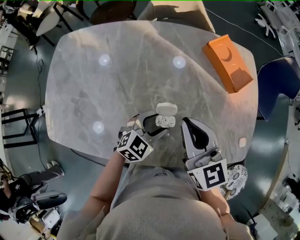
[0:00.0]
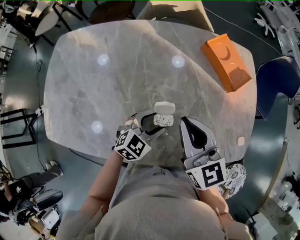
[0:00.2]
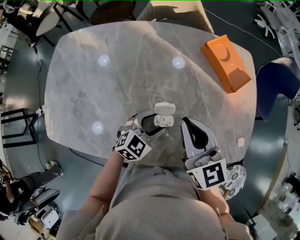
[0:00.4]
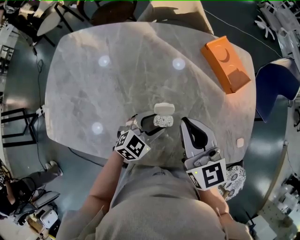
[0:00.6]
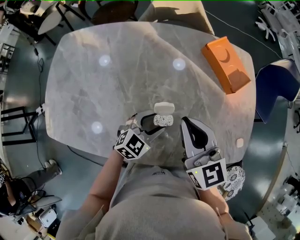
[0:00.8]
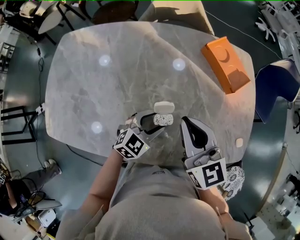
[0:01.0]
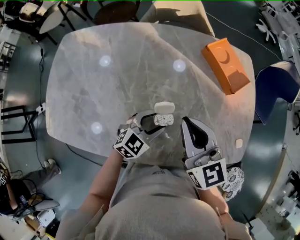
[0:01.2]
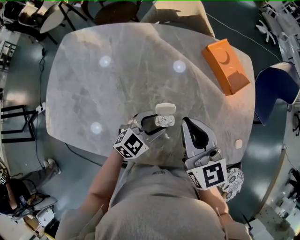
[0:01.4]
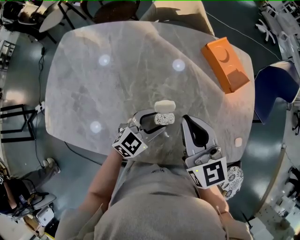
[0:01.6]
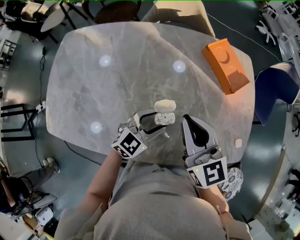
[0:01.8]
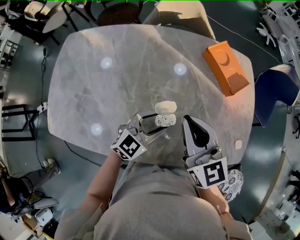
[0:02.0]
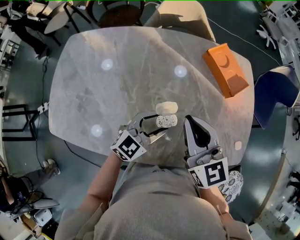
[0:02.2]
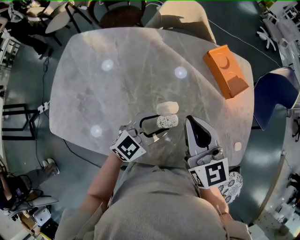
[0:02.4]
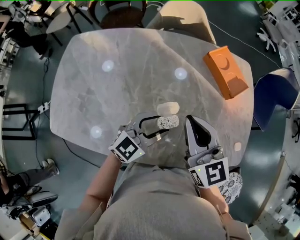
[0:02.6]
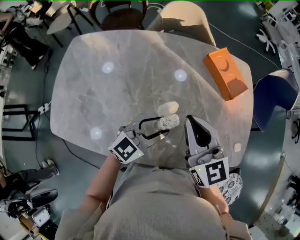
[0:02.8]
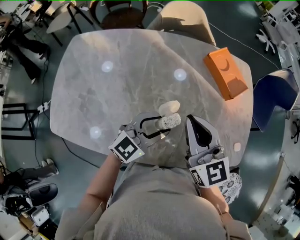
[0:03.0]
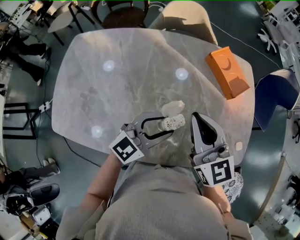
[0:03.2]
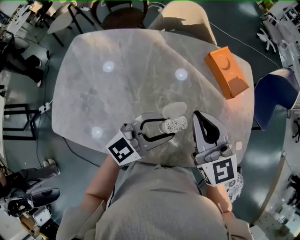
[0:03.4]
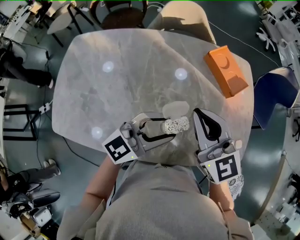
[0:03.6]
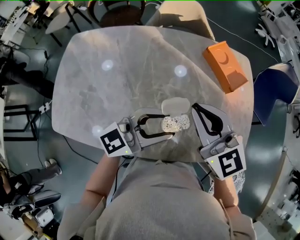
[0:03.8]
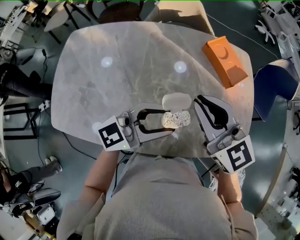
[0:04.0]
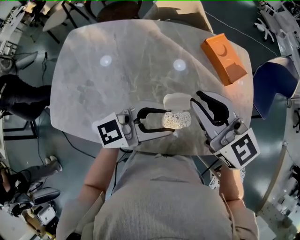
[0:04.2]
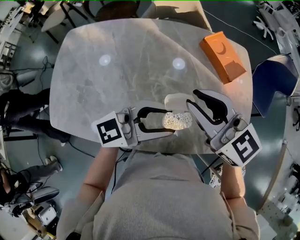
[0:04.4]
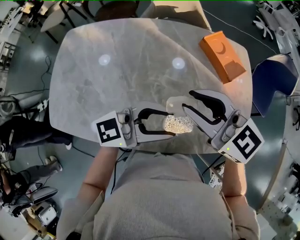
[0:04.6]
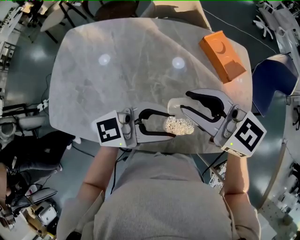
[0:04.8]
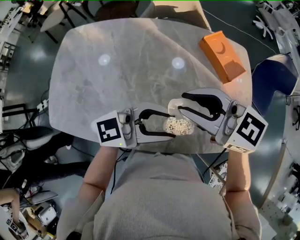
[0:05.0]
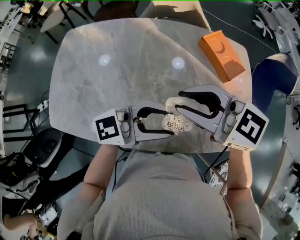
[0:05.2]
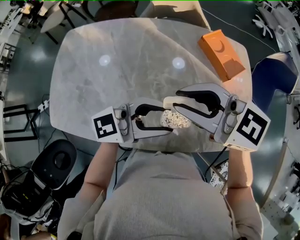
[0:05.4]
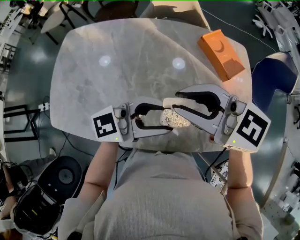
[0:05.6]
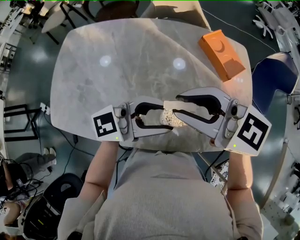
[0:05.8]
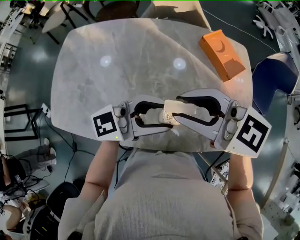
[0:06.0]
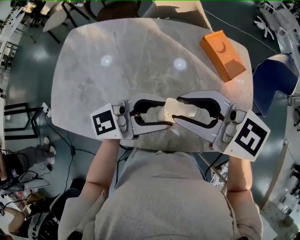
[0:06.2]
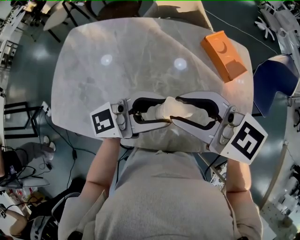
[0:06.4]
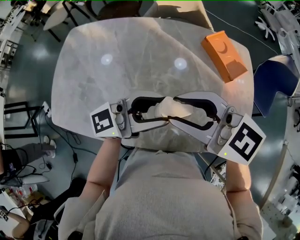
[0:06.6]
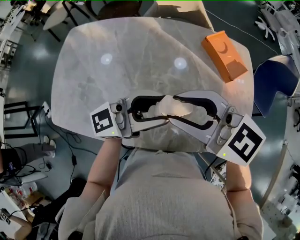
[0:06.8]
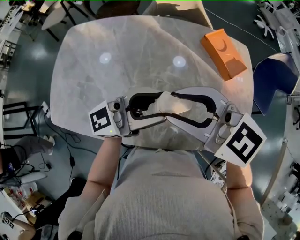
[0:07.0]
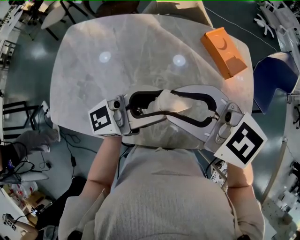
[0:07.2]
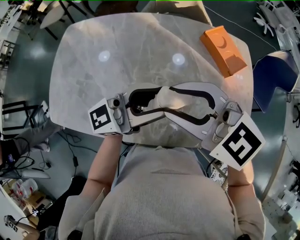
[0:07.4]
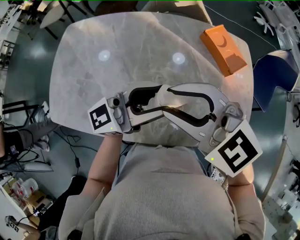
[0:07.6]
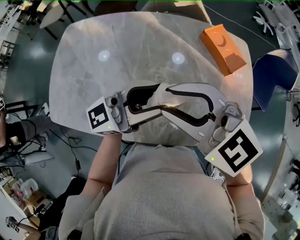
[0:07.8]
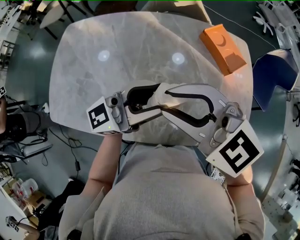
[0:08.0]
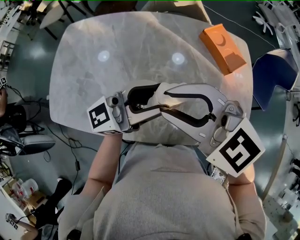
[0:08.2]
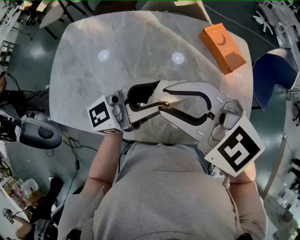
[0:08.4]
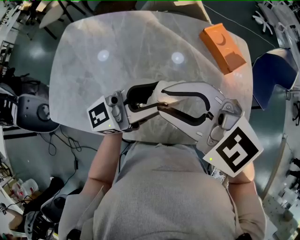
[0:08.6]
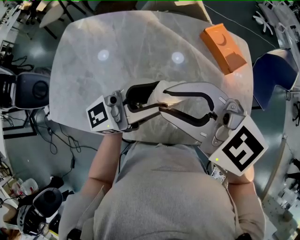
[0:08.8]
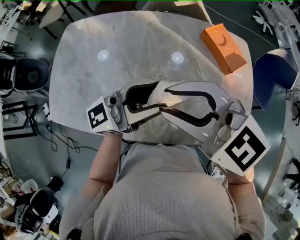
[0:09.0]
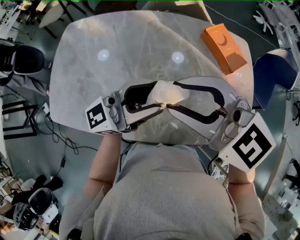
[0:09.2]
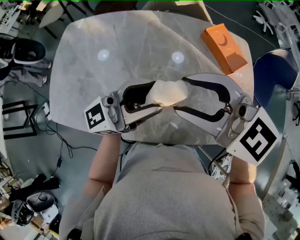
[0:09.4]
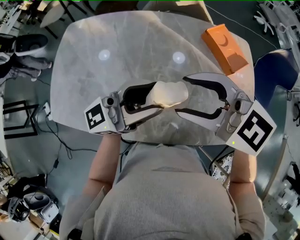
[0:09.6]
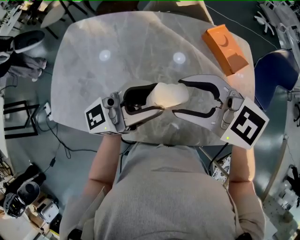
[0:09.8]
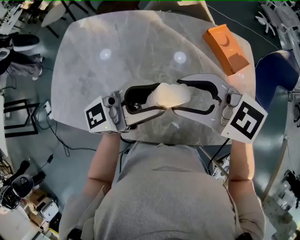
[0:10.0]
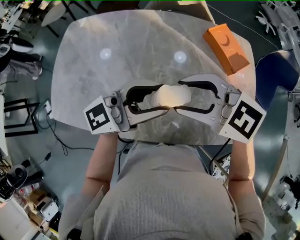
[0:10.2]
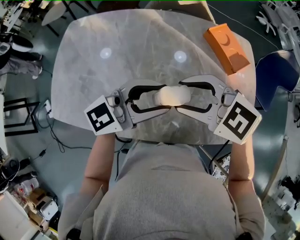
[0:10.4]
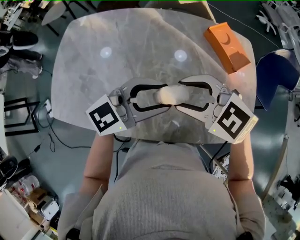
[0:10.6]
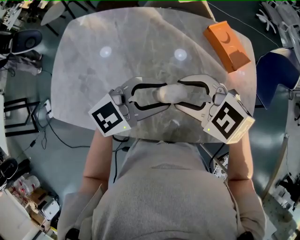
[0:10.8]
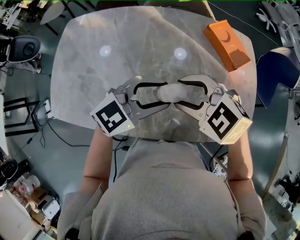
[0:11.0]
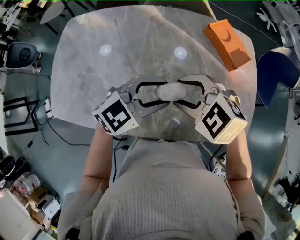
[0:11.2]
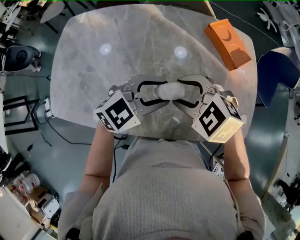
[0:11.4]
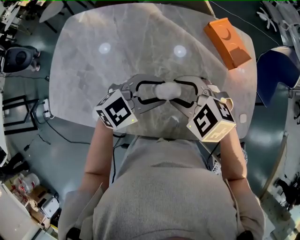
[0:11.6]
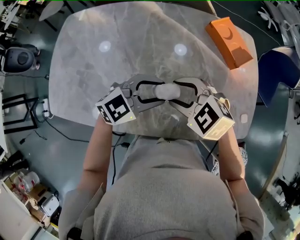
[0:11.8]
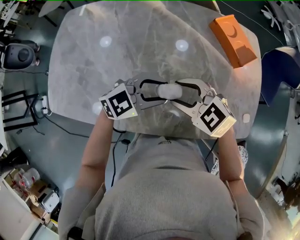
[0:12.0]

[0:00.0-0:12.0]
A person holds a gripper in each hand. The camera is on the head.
0:00.0 to 0:01.6: The grippers make only small movements.
0:01.6 to 0:03.0: The left gripper heads upward, covering approximately 10 cm.
0:03.0 to 0:04.4: The right gripper rotates about 20 degrees, and opens up. Meanwhile the left gripper travels upward by some 10 cm, and turns by about 30 degrees.
0:04.4 to 0:06.0: The right gripper shifts by about 5 cm, and changes its angle by approximately 20 degrees.
0:06.0 to 0:07.6: The right gripper rotates about 20 degrees, while the left gripper ends up roughly 5 cm from where it was.
0:07.6 to 0:09.0: The grippers stay close to where they were, moving slightly.
0:09.0 to 0:10.4: The left gripper rotates roughly 20 degrees. The right gripper travels downward by approximately 10 cm, and opens its fingers.
0:10.4 to 0:12.0: Both grippers travel together downward, roughly 15 cm. The left gripper rotates some 30 degrees.

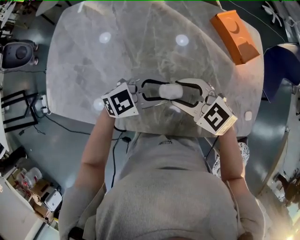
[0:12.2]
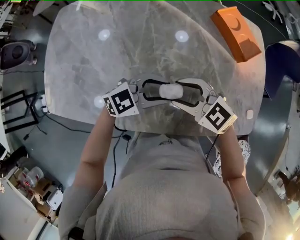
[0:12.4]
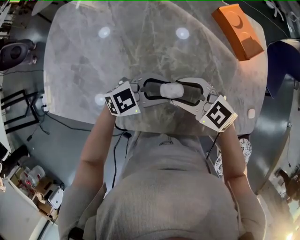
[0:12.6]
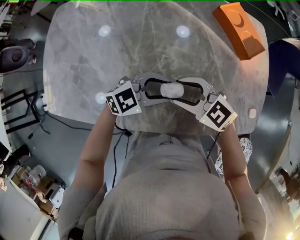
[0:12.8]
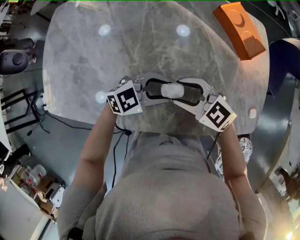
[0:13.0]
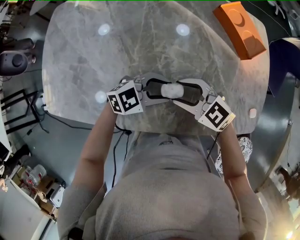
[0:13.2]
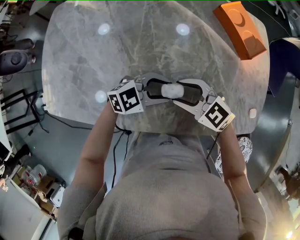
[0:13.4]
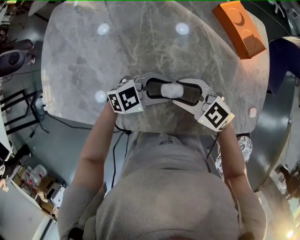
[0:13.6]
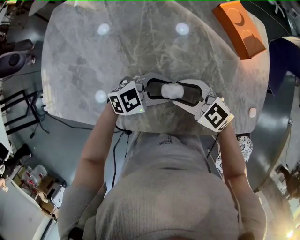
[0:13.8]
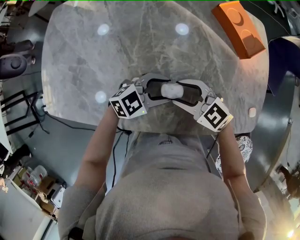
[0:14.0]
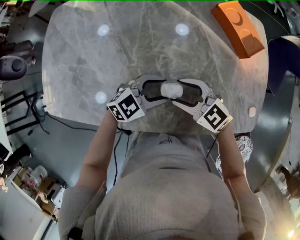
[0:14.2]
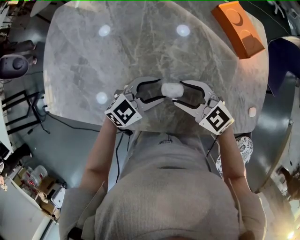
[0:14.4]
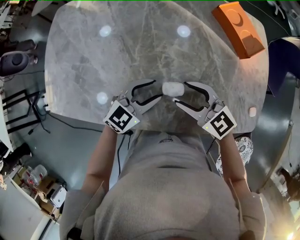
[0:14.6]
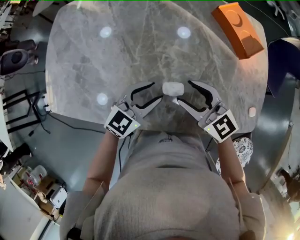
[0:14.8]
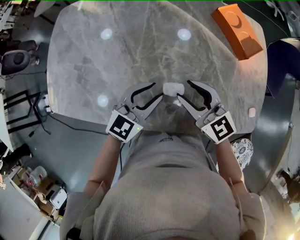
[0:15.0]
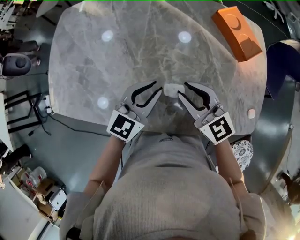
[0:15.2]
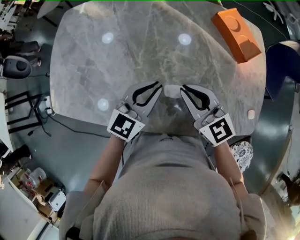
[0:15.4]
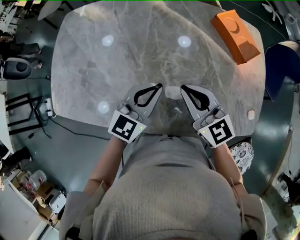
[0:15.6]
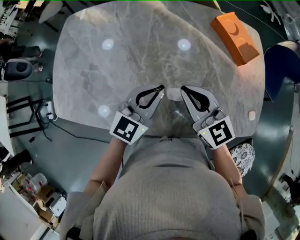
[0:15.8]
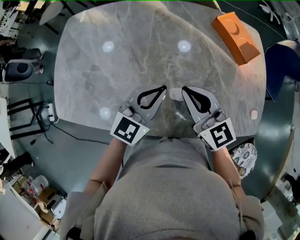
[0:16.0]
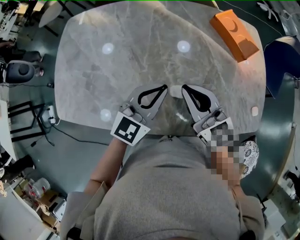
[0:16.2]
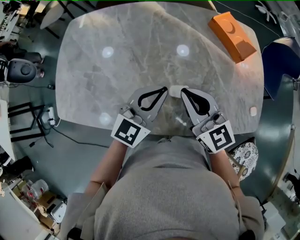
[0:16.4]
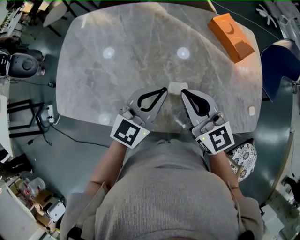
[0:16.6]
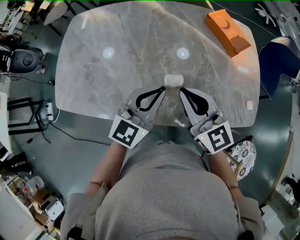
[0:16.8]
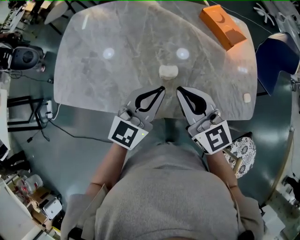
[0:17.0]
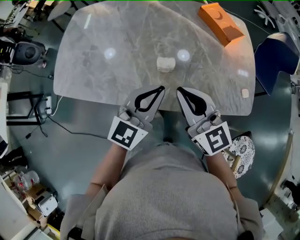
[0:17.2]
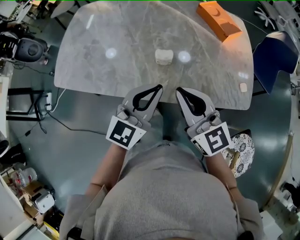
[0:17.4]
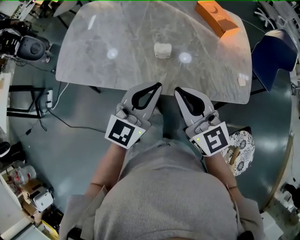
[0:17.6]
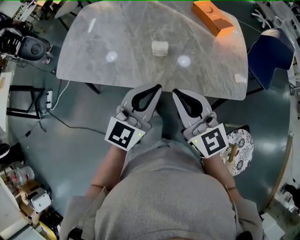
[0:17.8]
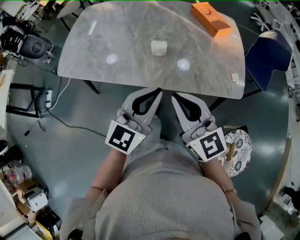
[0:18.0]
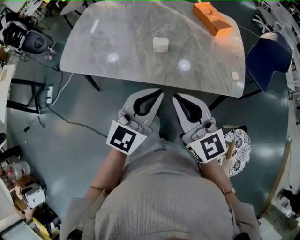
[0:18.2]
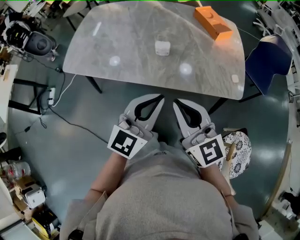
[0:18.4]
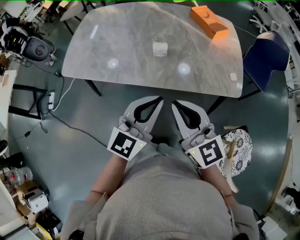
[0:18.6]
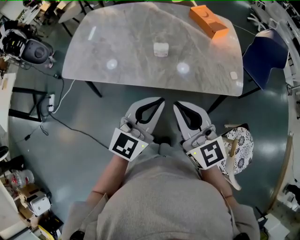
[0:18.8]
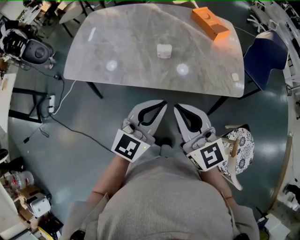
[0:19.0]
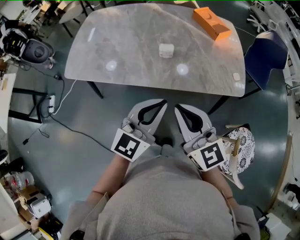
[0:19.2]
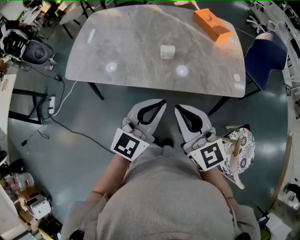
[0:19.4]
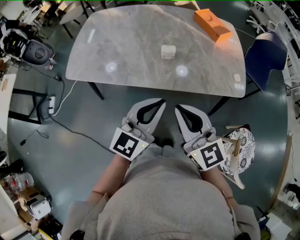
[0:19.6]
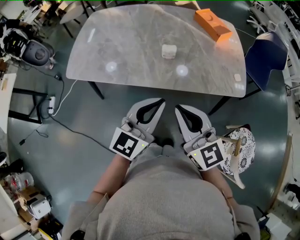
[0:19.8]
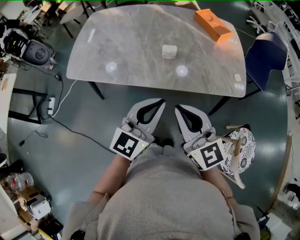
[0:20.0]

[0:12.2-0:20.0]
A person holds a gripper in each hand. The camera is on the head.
0:12.2 to 0:13.8: The two grippers go some 5 cm downward.
0:13.8 to 0:15.4: Both grippers move upward, about 10 cm. The left gripper turns by about 50 degrees, and closes its fingers, while the right gripper changes its angle by about 30 degrees, and closes its fingers.
0:15.4 to 0:16.8: The left gripper goes some 10 cm backward and upward. Meanwhile the right gripper travels upward and backward by about 10 cm.
0:16.8 to 0:18.4: The grippers both shift backward by approximately 25 cm.
0:18.4 to 0:20.0: The grippers make only small movements.

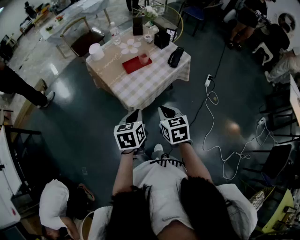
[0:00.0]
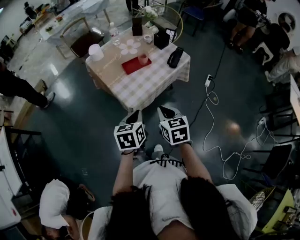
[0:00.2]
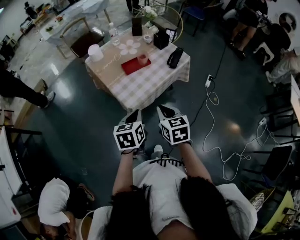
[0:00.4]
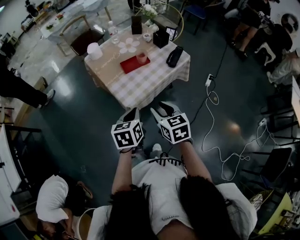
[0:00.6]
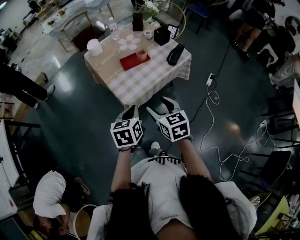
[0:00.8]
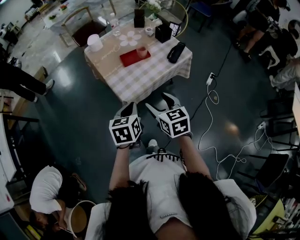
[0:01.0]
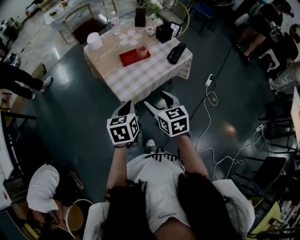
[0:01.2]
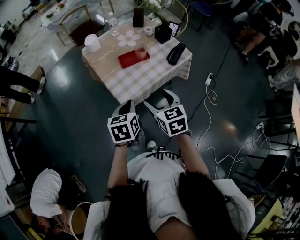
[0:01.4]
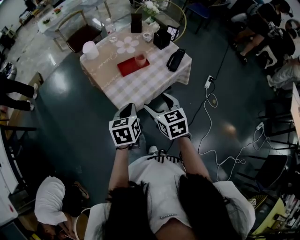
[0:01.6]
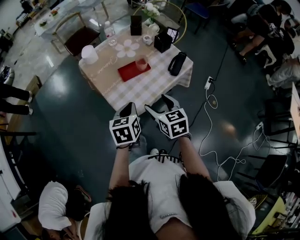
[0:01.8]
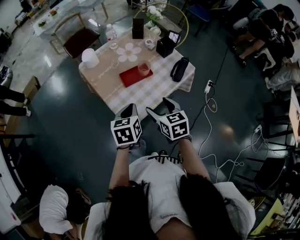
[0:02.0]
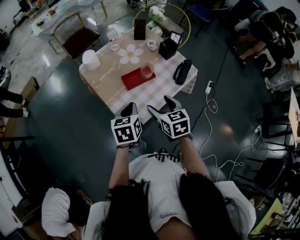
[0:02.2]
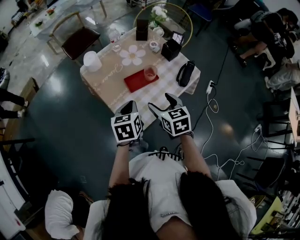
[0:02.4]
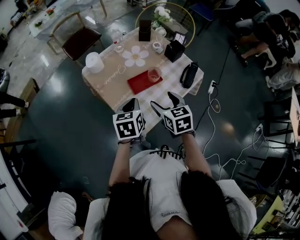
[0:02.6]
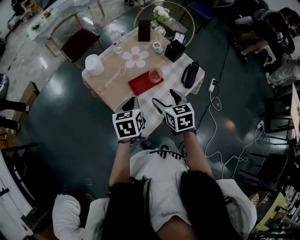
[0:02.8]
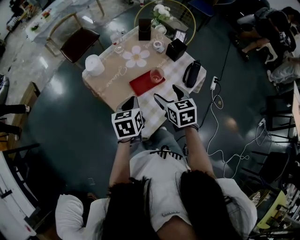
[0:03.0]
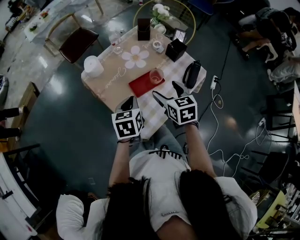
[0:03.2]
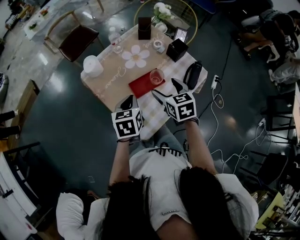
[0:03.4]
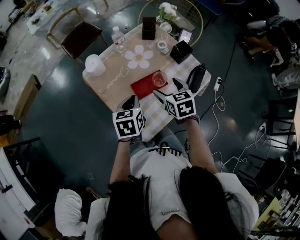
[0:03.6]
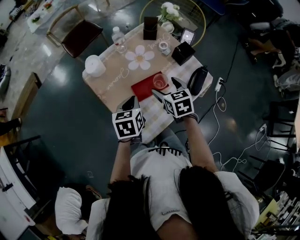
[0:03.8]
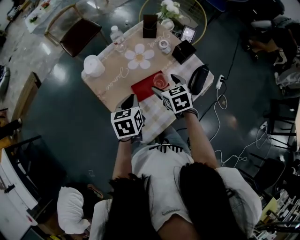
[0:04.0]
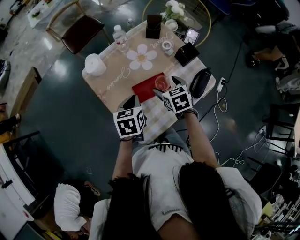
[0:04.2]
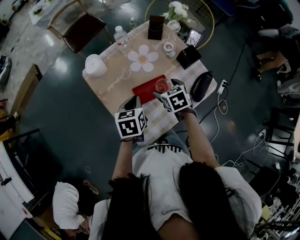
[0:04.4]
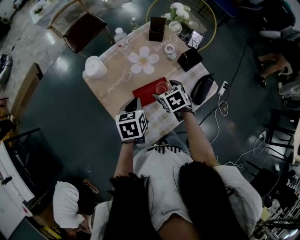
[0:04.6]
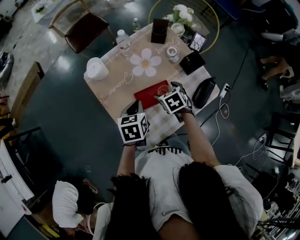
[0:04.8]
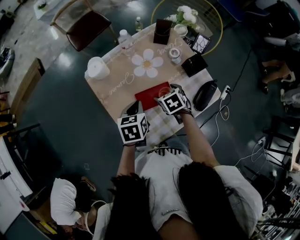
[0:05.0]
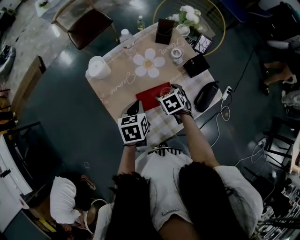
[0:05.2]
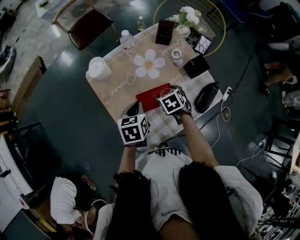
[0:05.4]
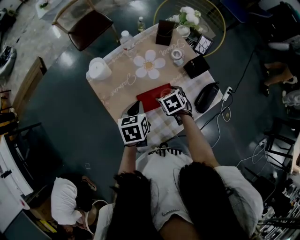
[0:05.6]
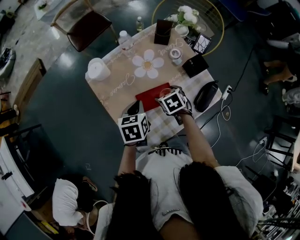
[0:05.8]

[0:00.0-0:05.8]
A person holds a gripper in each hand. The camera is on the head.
0:00.0 to 0:01.4: Both grippers travel together forward, roughly 5 cm. The right gripper opens.
0:01.4 to 0:02.8: The grippers both shift forward by approximately 20 cm.
0:02.8 to 0:04.4: The right gripper heads forward and downward, covering about 15 cm, and changes its angle by some 20 degrees; the left gripper moves forward, about 10 cm.
0:04.4 to 0:05.8: The right gripper ends up approximately 5 cm from where it was.
